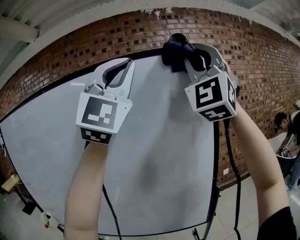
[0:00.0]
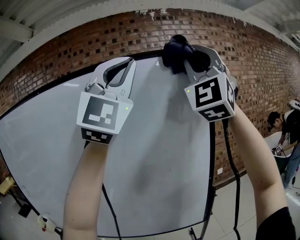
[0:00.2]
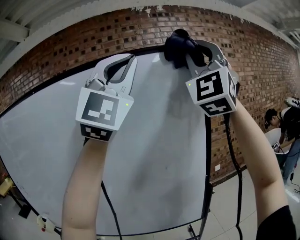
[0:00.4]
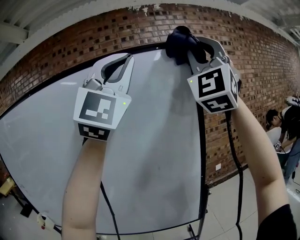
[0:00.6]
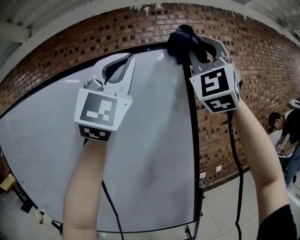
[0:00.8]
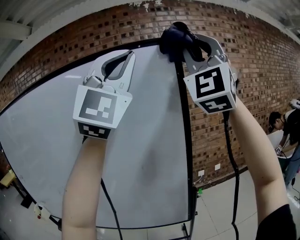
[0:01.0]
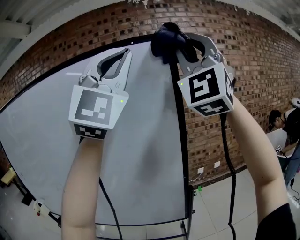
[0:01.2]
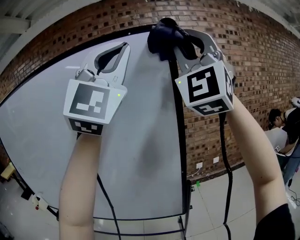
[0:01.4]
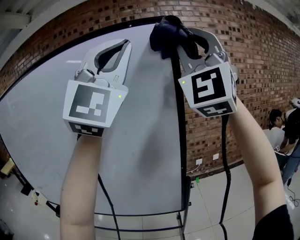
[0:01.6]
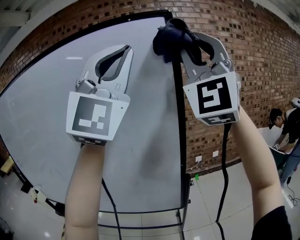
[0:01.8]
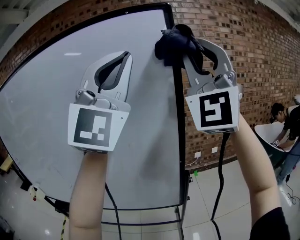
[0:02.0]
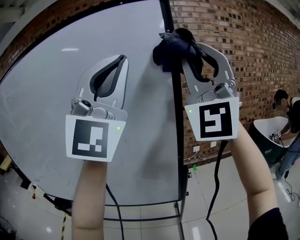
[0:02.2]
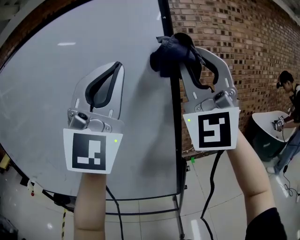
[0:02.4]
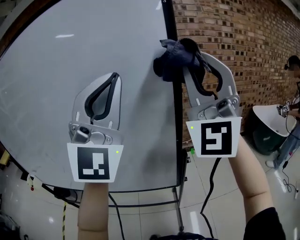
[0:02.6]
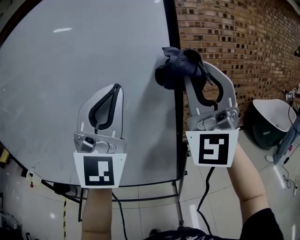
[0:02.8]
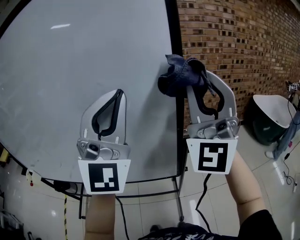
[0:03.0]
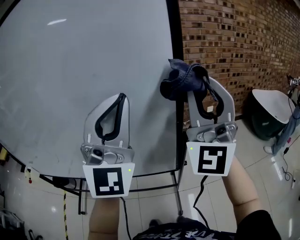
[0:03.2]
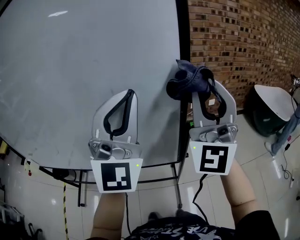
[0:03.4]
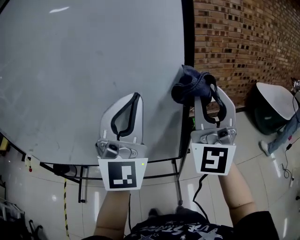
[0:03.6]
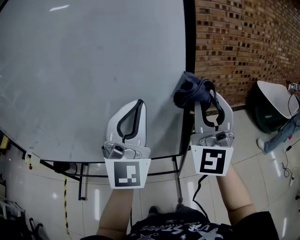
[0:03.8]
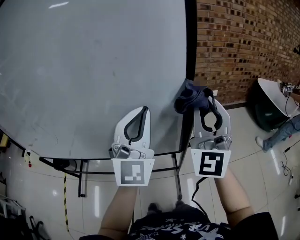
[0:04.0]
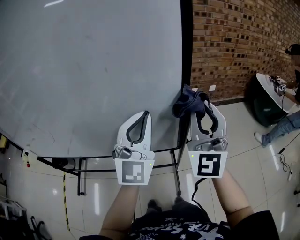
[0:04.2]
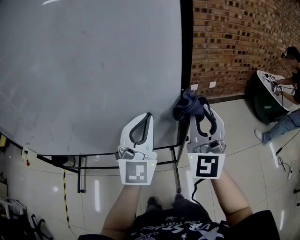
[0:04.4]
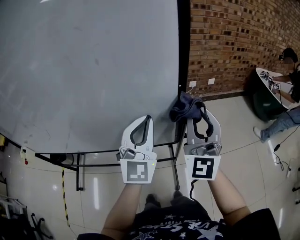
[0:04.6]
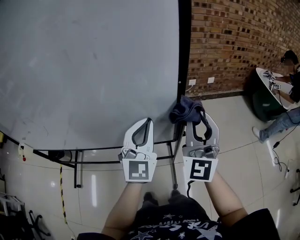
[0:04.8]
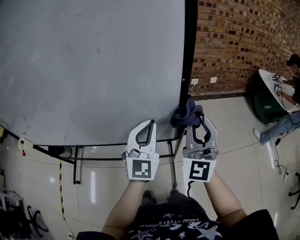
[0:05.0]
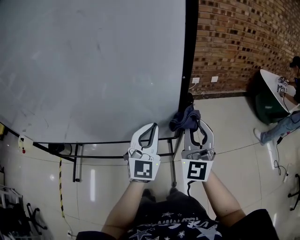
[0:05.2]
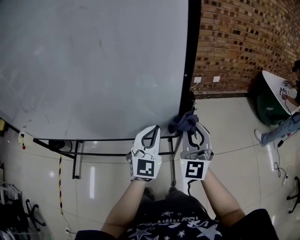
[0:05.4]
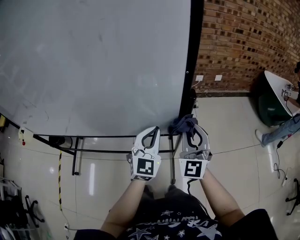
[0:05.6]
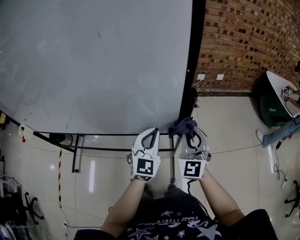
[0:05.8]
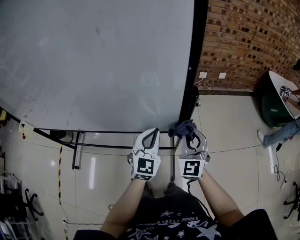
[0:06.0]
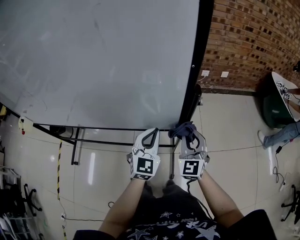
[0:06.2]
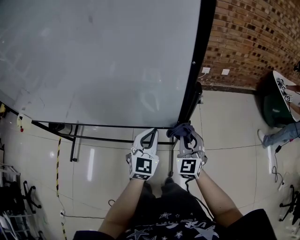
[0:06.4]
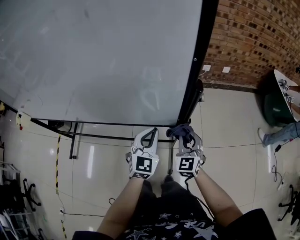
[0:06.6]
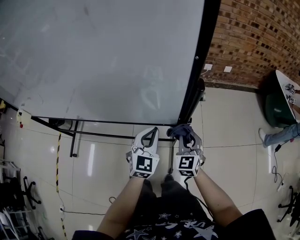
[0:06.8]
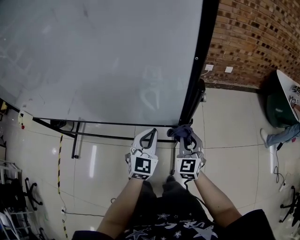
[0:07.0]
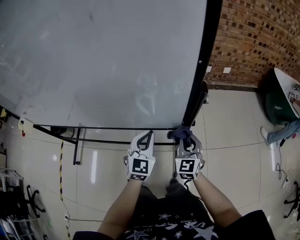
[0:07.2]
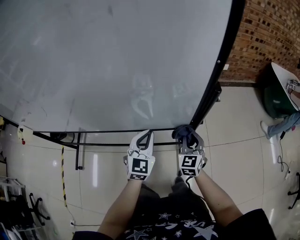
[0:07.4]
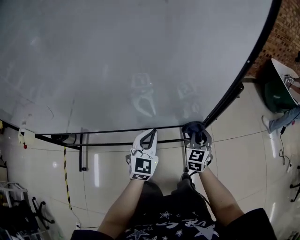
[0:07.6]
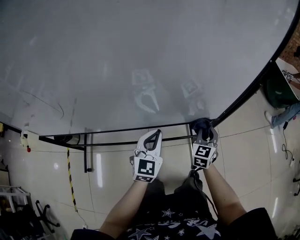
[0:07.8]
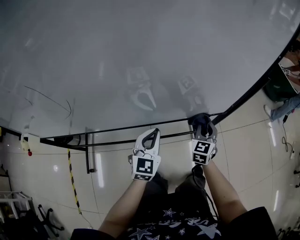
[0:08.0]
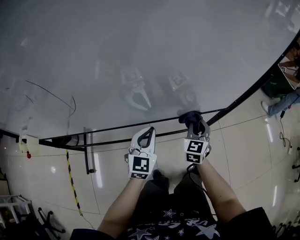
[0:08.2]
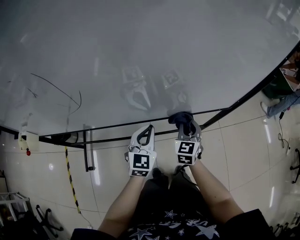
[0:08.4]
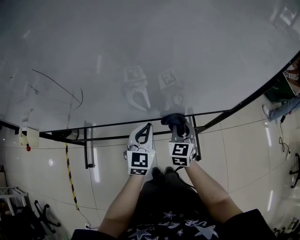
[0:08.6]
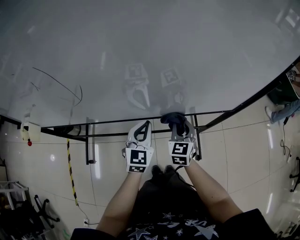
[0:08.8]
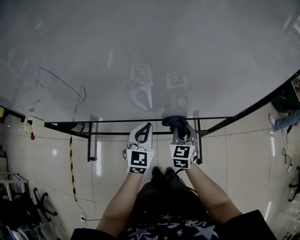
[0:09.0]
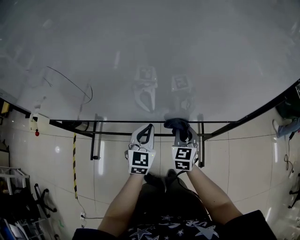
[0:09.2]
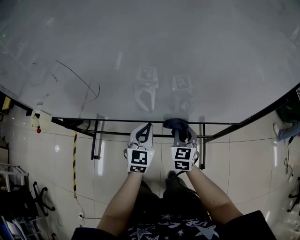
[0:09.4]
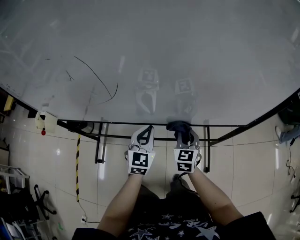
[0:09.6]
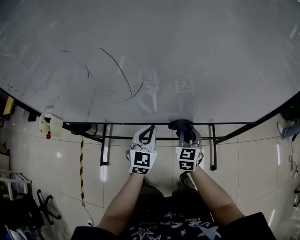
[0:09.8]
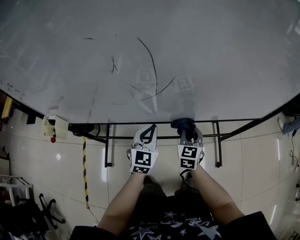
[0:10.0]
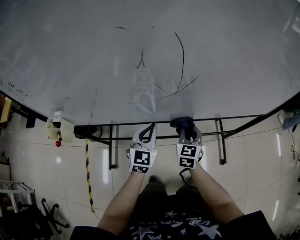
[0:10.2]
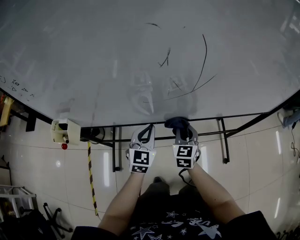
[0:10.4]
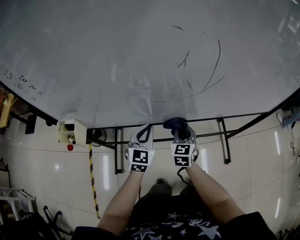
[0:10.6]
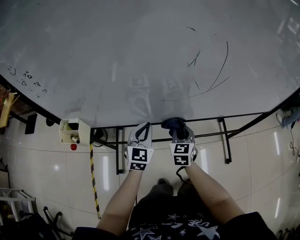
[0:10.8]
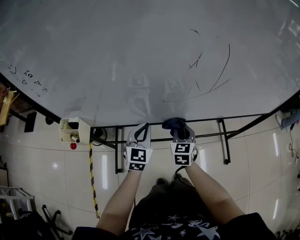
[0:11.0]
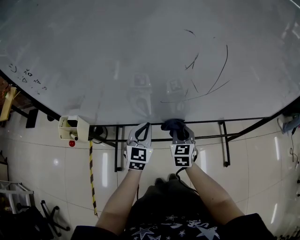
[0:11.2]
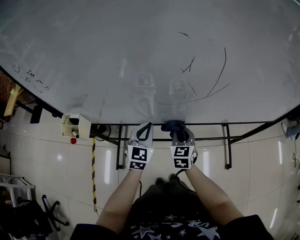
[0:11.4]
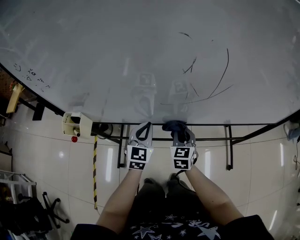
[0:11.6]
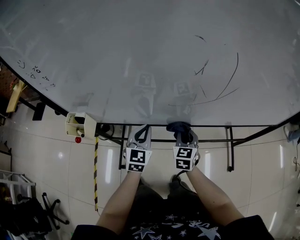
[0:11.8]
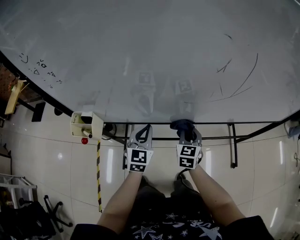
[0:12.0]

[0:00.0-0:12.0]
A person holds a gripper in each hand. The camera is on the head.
0:00.0 to 0:01.6: Both grippers move to the right, some 10 cm.
0:01.6 to 0:03.0: Both grippers travel together downward, some 25 cm.
0:03.0 to 0:04.4: Both grippers move downward, roughly 20 cm. The left gripper changes its angle by some 30 degrees. The right gripper swivels approximately 30 degrees.
0:04.4 to 0:06.0: Both grippers move downward, some 25 cm. The left gripper rotates some 20 degrees, while the right gripper changes its angle by some 20 degrees.
0:06.0 to 0:07.6: The left gripper goes about 15 cm to the left and downward. The right gripper moves downward, some 15 cm, and swivels about 30 degrees.
0:07.6 to 0:09.0: The two grippers go approximately 20 cm to the left.
0:09.0 to 0:10.4: The grippers both shift to the left by roughly 25 cm.
0:10.4 to 0:12.0: Both grippers travel together to the left, roughly 10 cm.

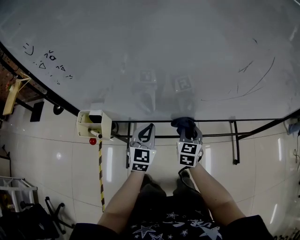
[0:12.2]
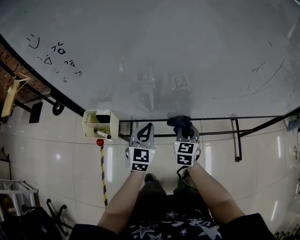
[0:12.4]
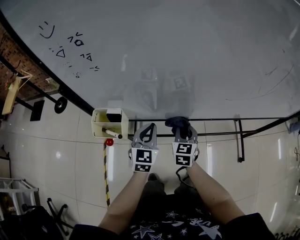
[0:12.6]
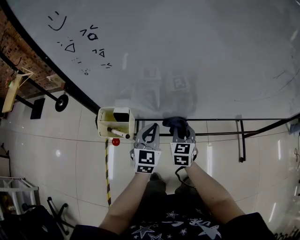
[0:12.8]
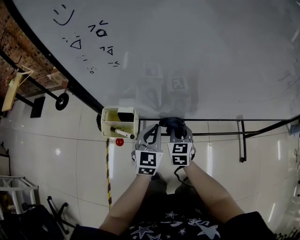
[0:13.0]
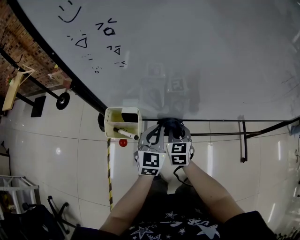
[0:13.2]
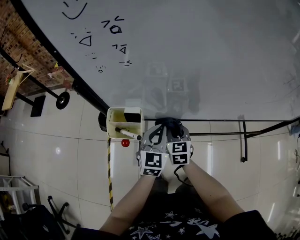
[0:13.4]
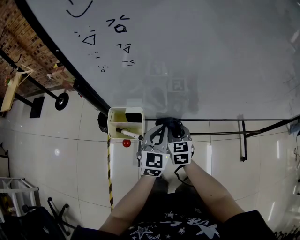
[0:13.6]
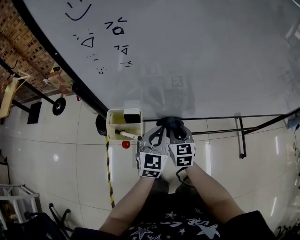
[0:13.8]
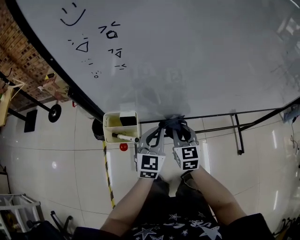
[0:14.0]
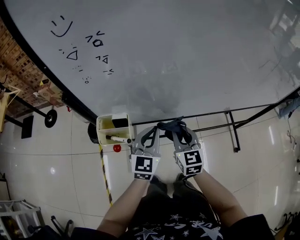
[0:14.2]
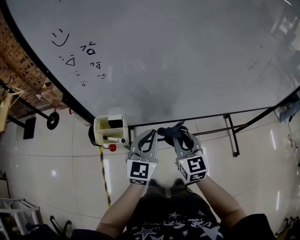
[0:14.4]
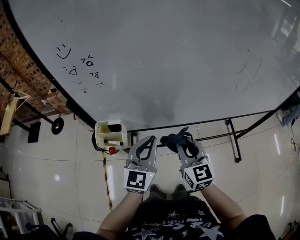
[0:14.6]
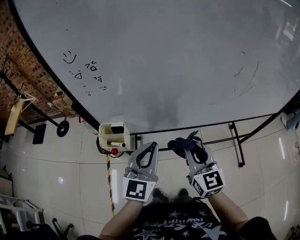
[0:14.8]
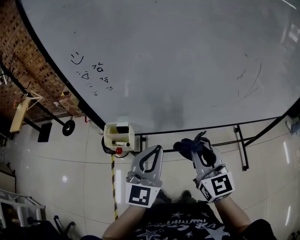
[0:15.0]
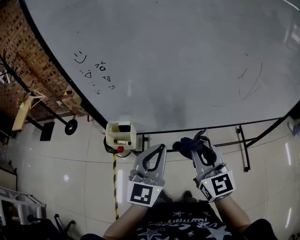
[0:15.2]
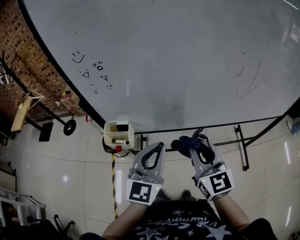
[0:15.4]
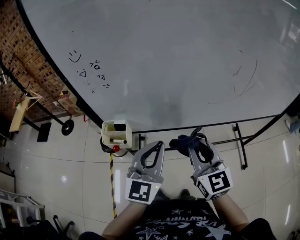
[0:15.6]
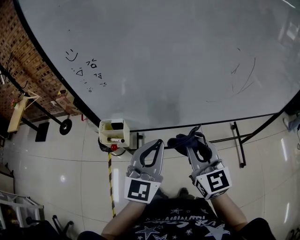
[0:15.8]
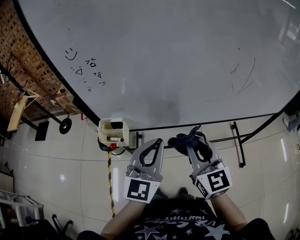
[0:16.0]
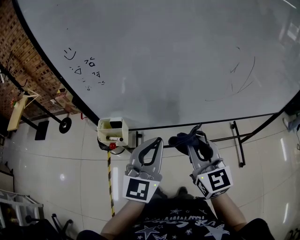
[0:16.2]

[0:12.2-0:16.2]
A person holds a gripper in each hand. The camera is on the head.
0:12.2 to 0:13.6: The right gripper is displaced to the left by about 20 cm. The left gripper shifts some 10 cm to the left.
0:13.6 to 0:14.8: The left gripper is displaced upward and backward by about 20 cm. The right gripper heads upward, to the right and backward, covering roughly 25 cm, and turns by roughly 20 degrees.
0:14.8 to 0:16.2: The left gripper shifts by about 5 cm; the right gripper heads upward, covering about 5 cm.

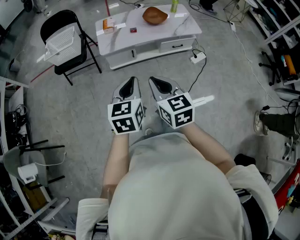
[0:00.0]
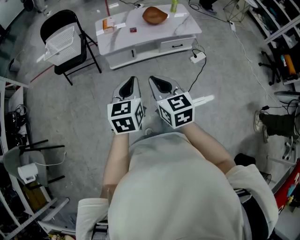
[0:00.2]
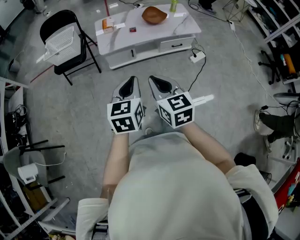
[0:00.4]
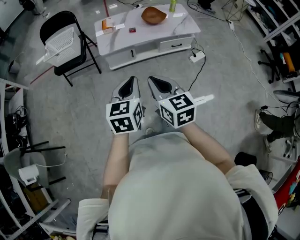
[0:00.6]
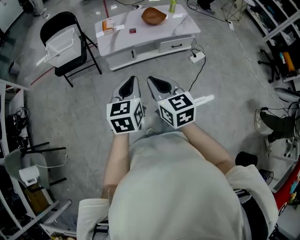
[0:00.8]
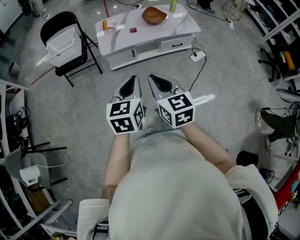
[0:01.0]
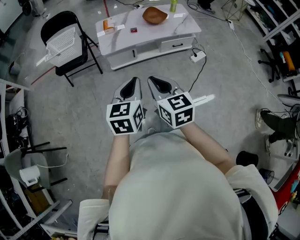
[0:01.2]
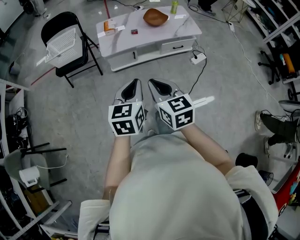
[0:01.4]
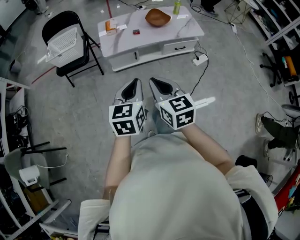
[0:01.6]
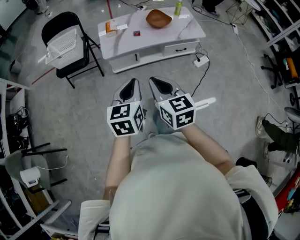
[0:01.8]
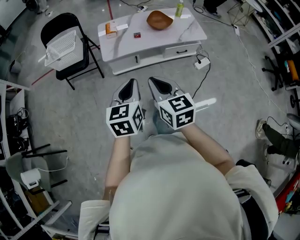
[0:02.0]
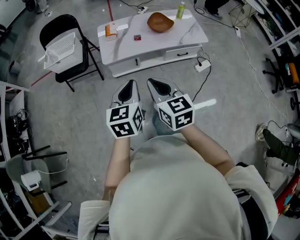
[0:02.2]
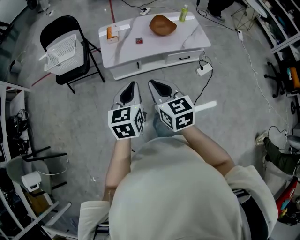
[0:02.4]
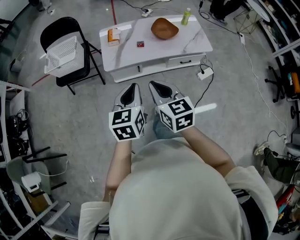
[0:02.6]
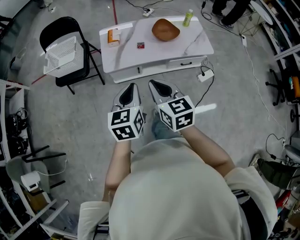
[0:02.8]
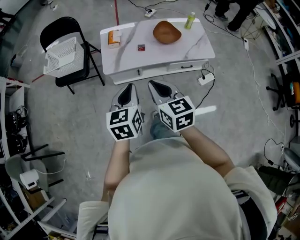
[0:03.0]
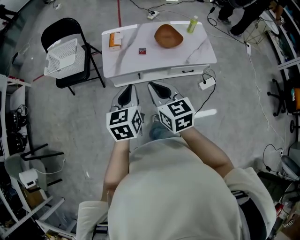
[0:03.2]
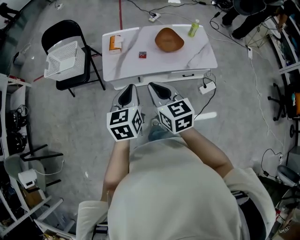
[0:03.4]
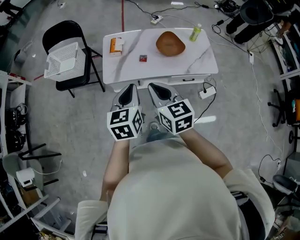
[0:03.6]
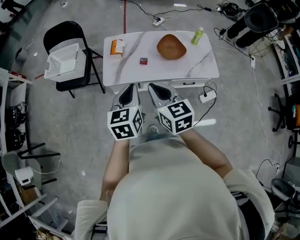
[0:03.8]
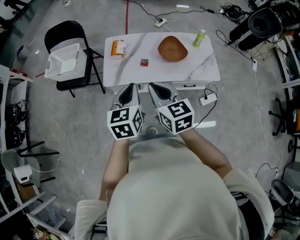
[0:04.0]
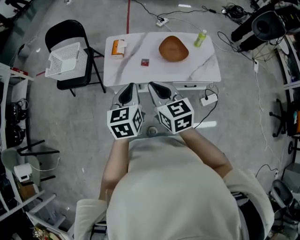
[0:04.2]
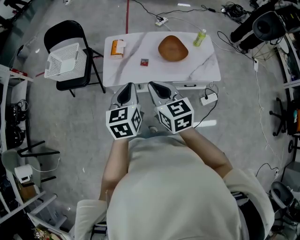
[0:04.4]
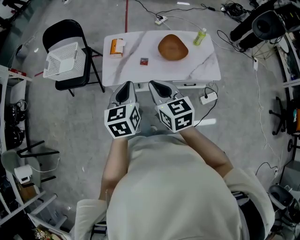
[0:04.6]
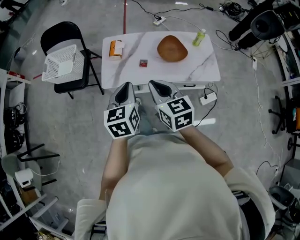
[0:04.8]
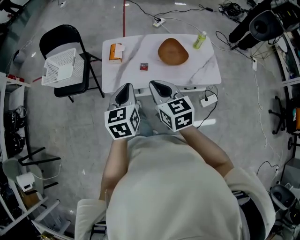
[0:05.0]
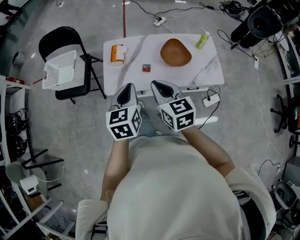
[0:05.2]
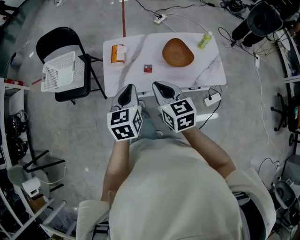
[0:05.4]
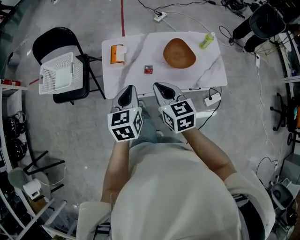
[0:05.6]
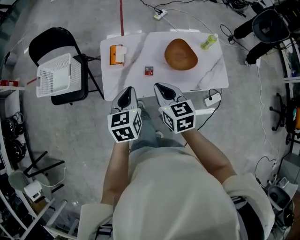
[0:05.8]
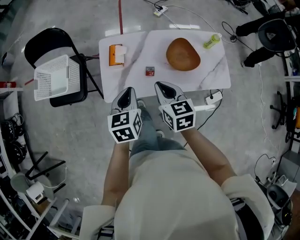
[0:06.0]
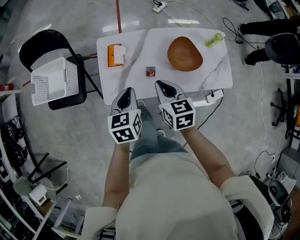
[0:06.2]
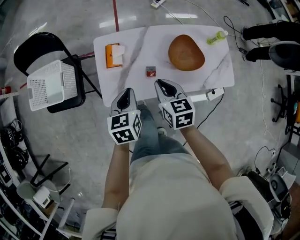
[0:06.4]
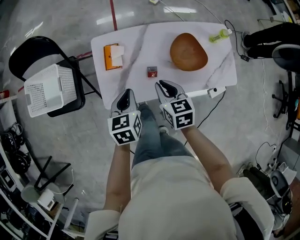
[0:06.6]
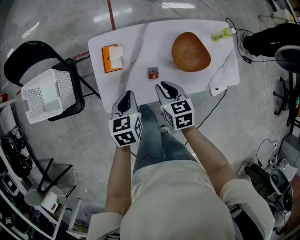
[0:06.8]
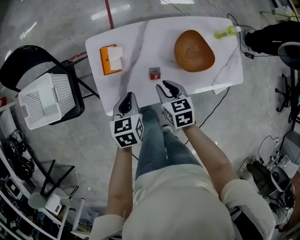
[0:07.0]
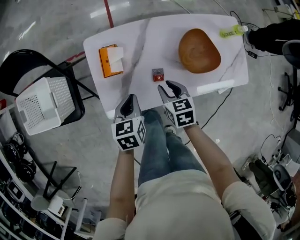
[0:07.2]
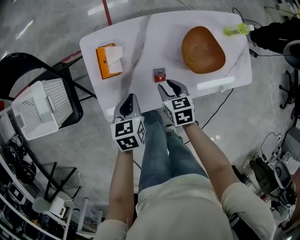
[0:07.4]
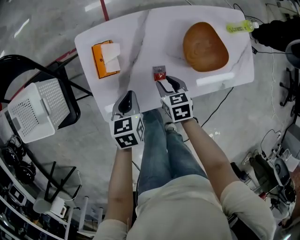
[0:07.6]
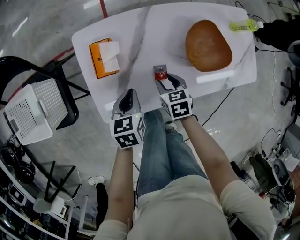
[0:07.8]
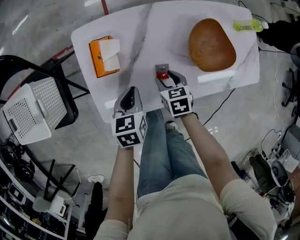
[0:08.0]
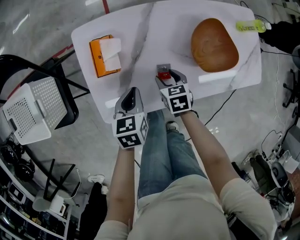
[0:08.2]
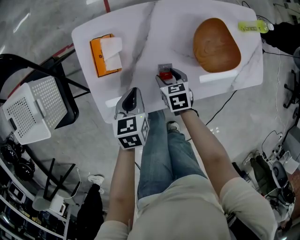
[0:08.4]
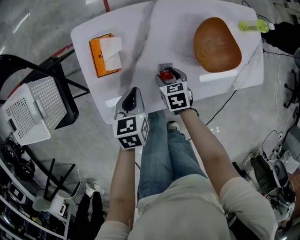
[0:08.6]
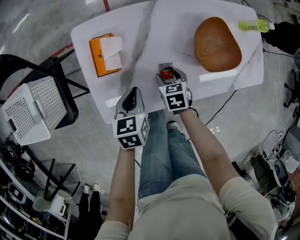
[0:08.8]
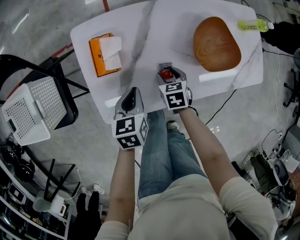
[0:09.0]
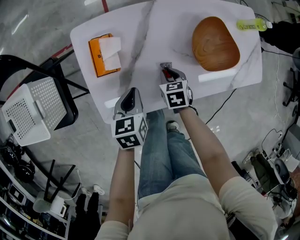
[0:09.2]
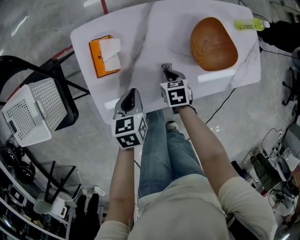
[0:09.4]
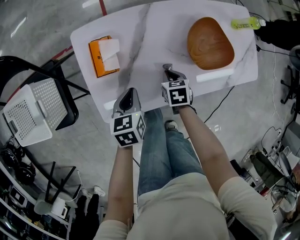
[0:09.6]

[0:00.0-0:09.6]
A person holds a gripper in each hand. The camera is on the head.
0:00.0 to 0:01.6: The grippers stay close to where they were, moving slightly.
0:01.6 to 0:03.2: Both grippers travel together forward, roughly 25 cm.
0:03.2 to 0:04.8: The right gripper goes some 15 cm forward and to the right; the left gripper goes some 10 cm forward.
0:04.8 to 0:06.4: The grippers both shift forward and downward by roughly 30 cm.
0:06.4 to 0:08.0: The grippers both shift downward by roughly 25 cm. The right gripper swivels about 20 degrees, and opens.
0:08.0 to 0:09.6: The right gripper closes.
